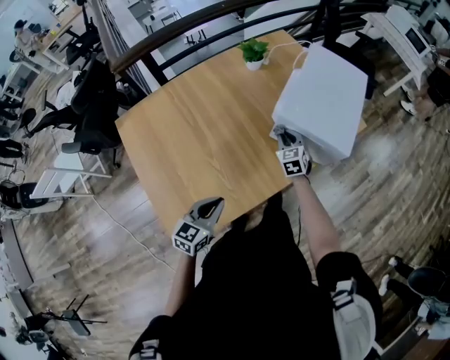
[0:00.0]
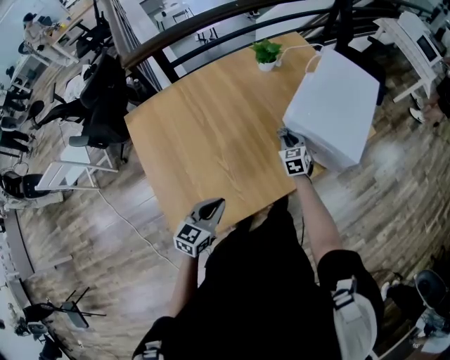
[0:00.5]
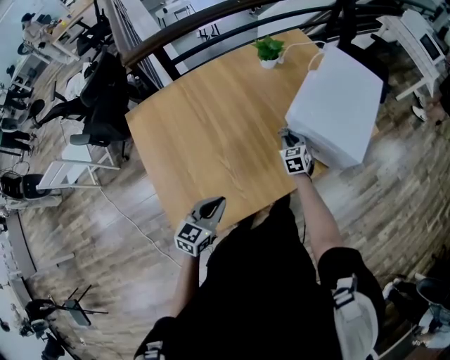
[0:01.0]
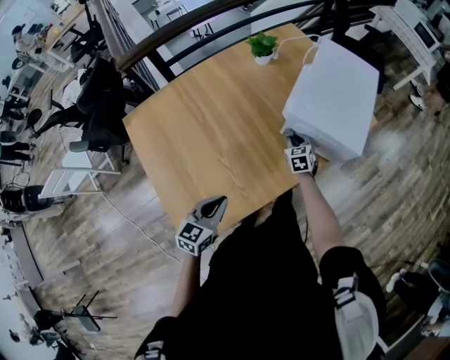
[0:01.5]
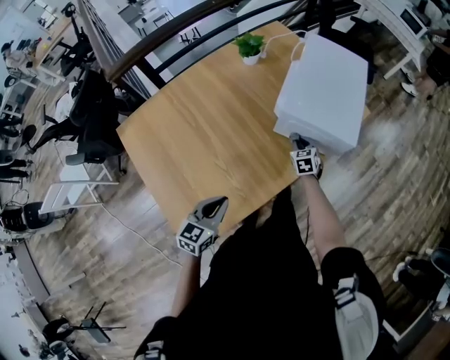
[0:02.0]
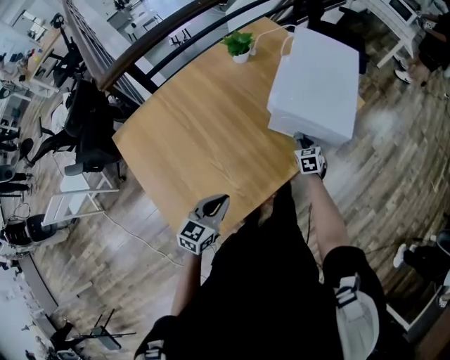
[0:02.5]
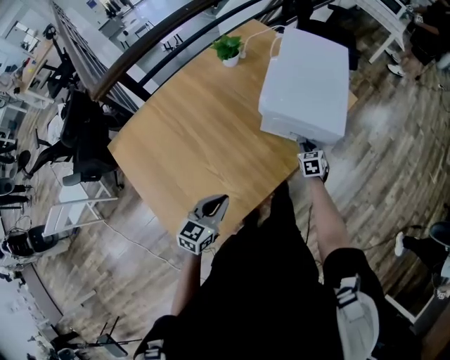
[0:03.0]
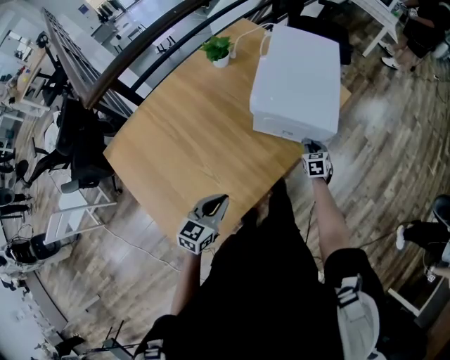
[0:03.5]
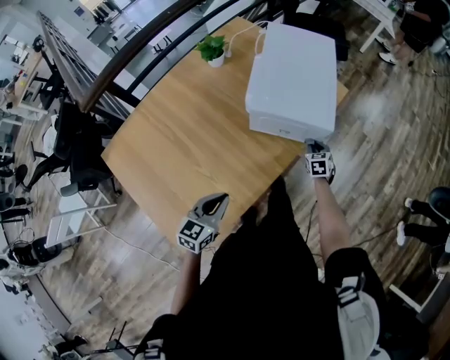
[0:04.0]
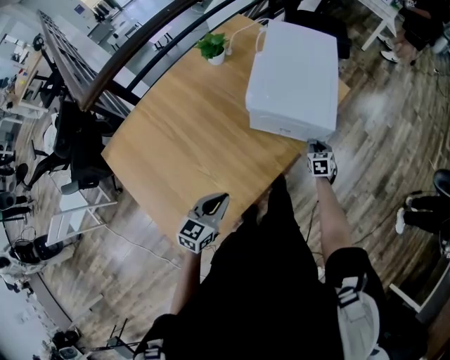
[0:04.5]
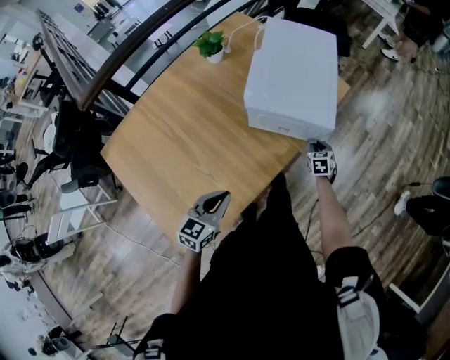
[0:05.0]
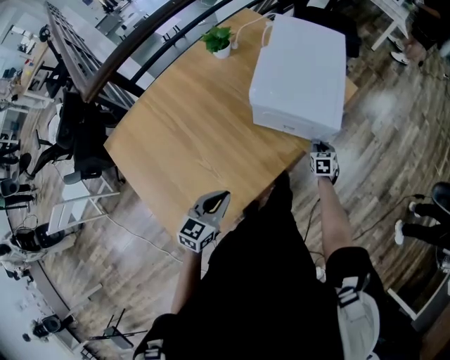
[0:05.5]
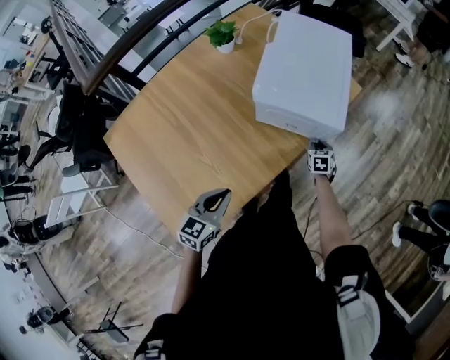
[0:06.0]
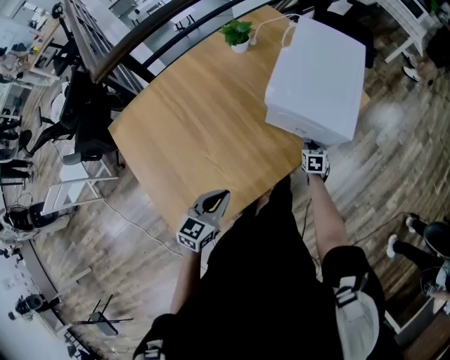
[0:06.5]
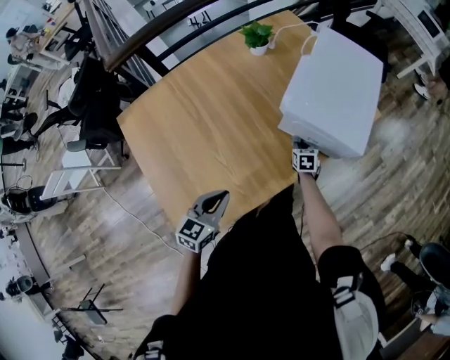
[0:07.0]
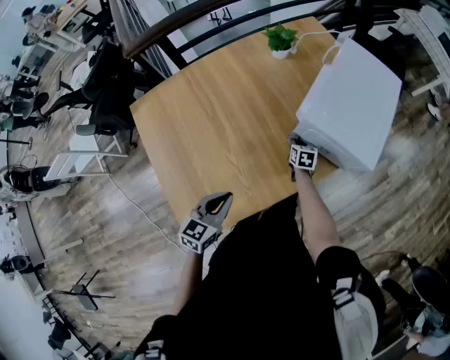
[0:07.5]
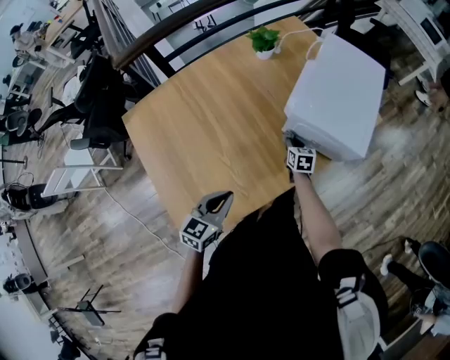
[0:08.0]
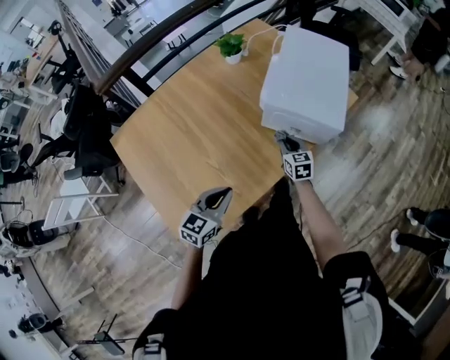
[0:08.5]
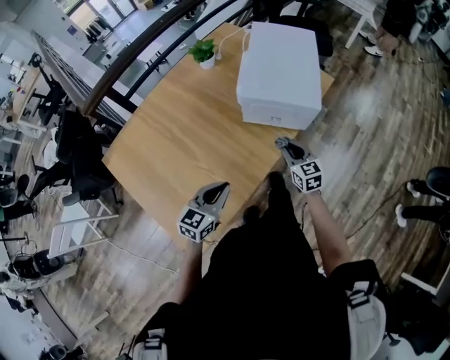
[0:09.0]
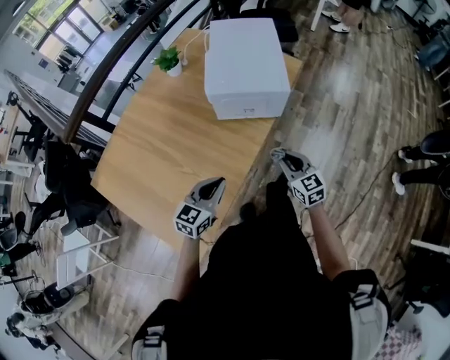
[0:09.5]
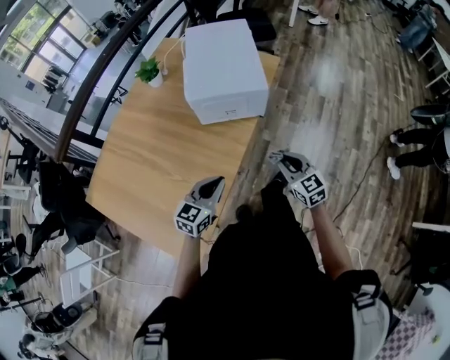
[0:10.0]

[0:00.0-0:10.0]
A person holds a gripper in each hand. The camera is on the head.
0:00.0 to 0:02.0: The right gripper is displaced downward and to the right by about 10 cm.
0:02.0 to 0:04.0: The left gripper travels forward and to the right by roughly 10 cm, while the right gripper travels to the right by some 15 cm.
0:04.0 to 0:06.0: The right gripper travels downward by some 5 cm.
0:06.0 to 0:08.0: The left gripper shifts about 5 cm to the left; the right gripper goes about 25 cm to the left, and changes its angle by about 20 degrees.
0:08.0 to 0:10.0: The left gripper travels to the right by about 15 cm, and turns by some 30 degrees. The right gripper shifts roughly 40 cm backward, to the right and upward, and swivels some 20 degrees.

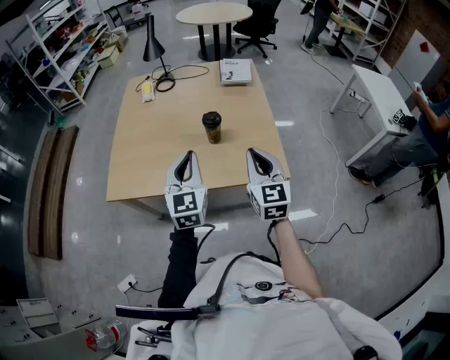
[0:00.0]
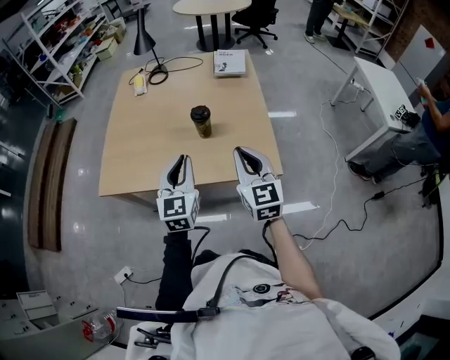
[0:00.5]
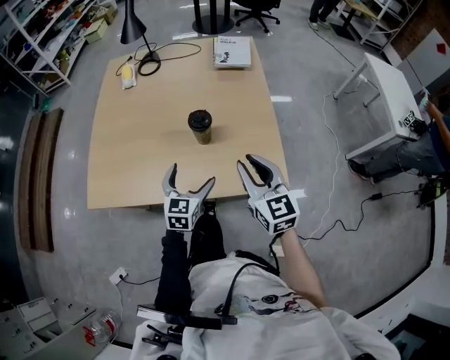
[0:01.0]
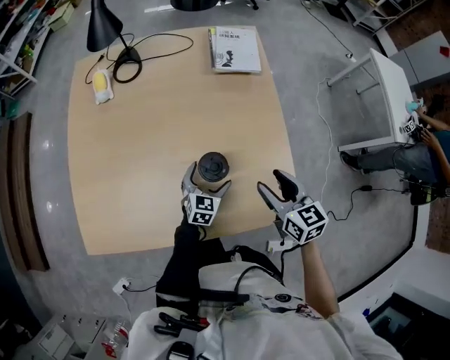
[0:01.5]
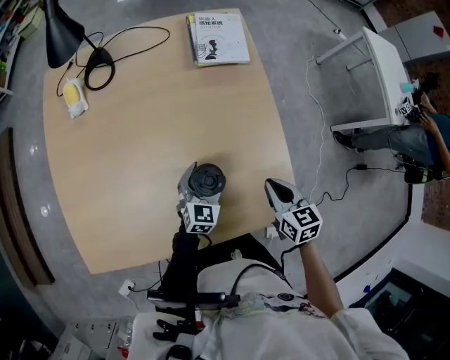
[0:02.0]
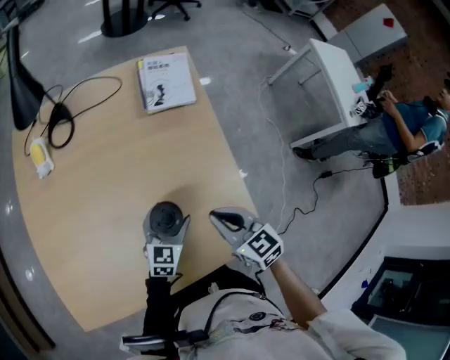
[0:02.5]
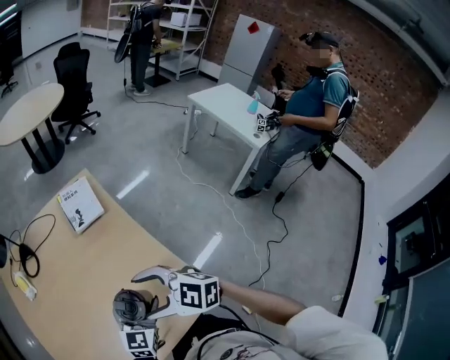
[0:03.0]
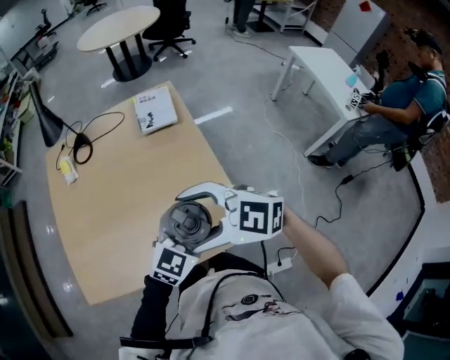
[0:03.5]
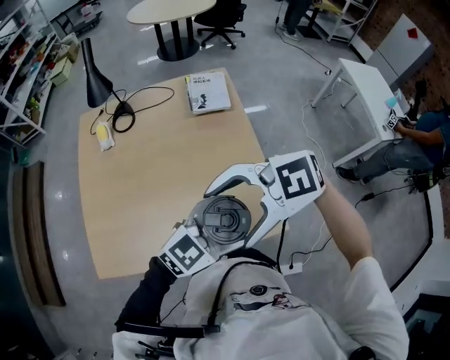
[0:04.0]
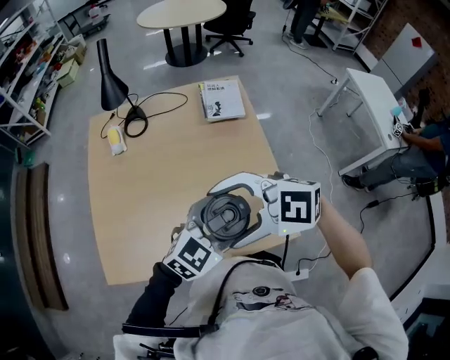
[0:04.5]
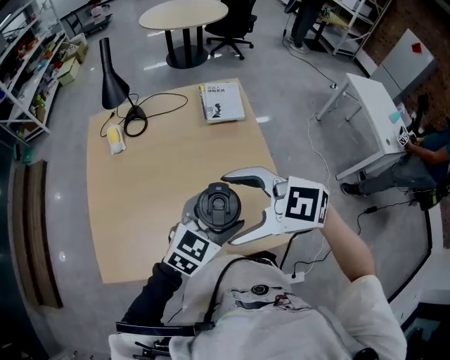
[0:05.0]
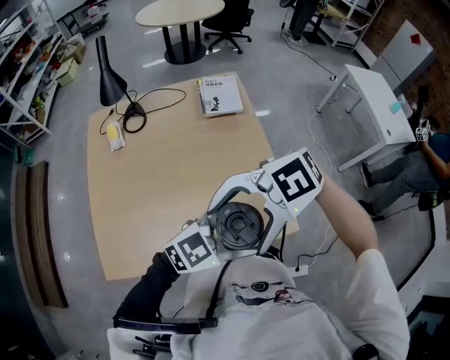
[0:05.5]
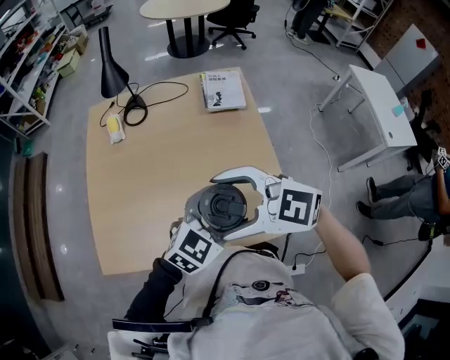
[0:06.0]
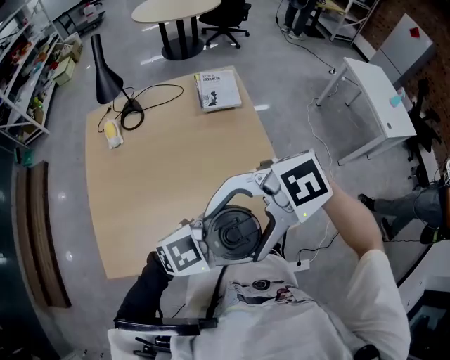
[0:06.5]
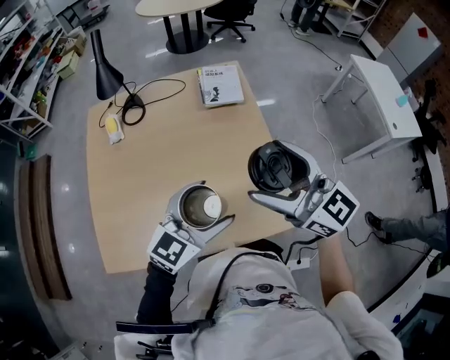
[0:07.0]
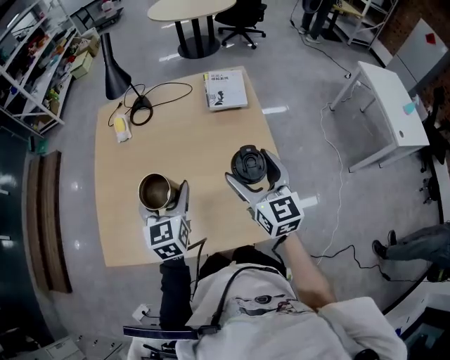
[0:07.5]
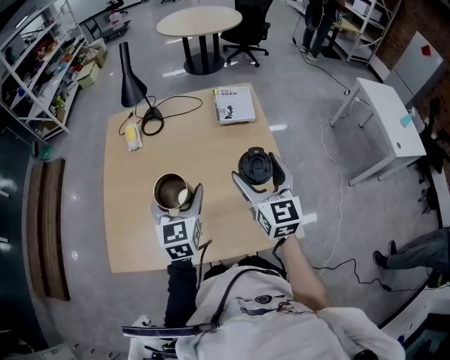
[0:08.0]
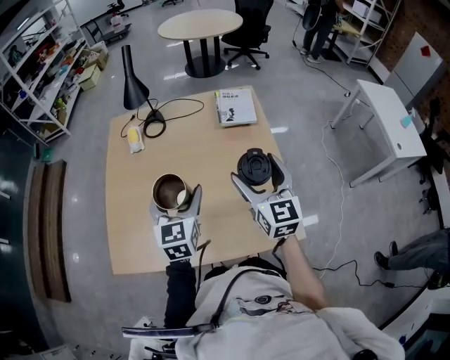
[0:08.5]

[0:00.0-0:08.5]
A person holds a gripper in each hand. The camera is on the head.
0:00.0 to 0:02.0: The left gripper heads downward and forward, covering some 40 cm, swivels about 40 degrees, and opens its fingers; the right gripper goes approximately 30 cm forward and downward, tips its fingers downward by approximately 30 degrees, and opens and closes again.
0:02.0 to 0:04.0: The grippers both shift upward by some 30 cm. The right gripper turns by about 100 degrees, and opens up. The left gripper turns by some 40 degrees.
0:04.0 to 0:06.5: The right gripper ends up some 5 cm from where it was.
0:06.5 to 0:08.5: The left gripper ends up some 25 cm from where it was, and swivels about 90 degrees. Meanwhile the right gripper changes place by approximately 20 cm, and rotates roughly 110 degrees.

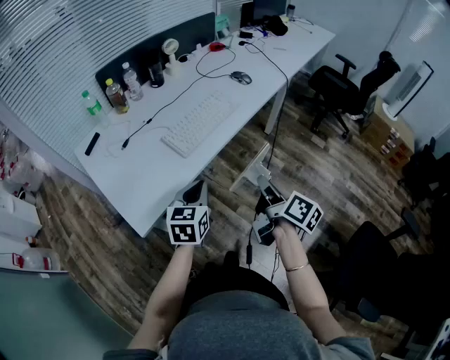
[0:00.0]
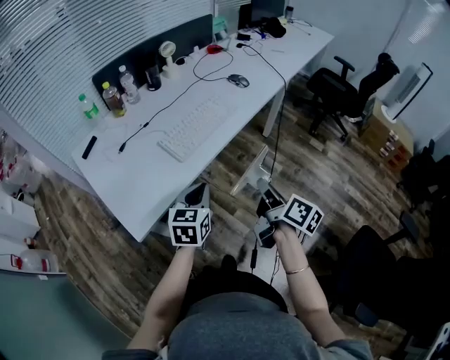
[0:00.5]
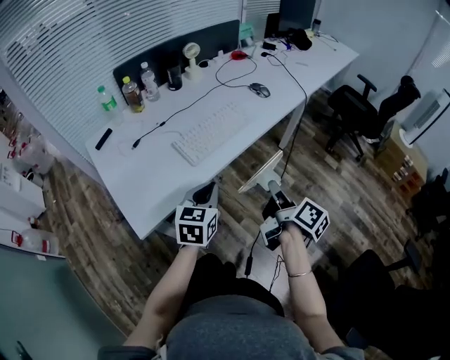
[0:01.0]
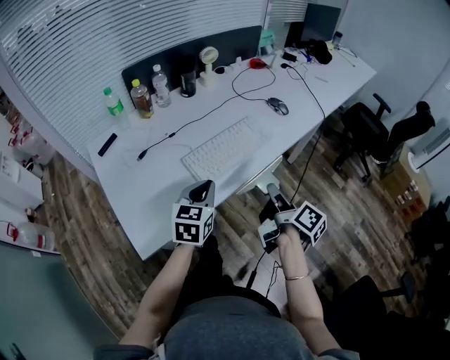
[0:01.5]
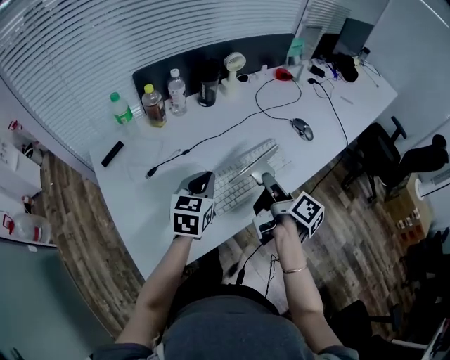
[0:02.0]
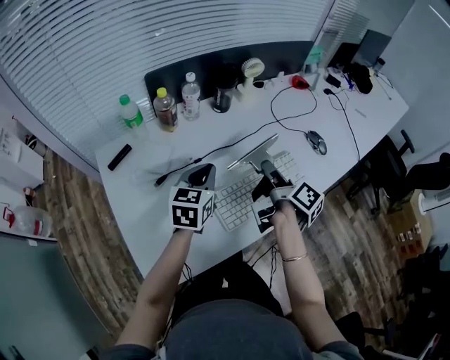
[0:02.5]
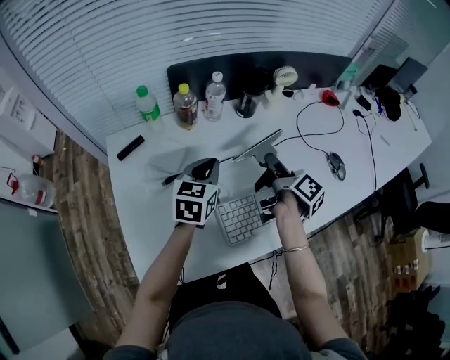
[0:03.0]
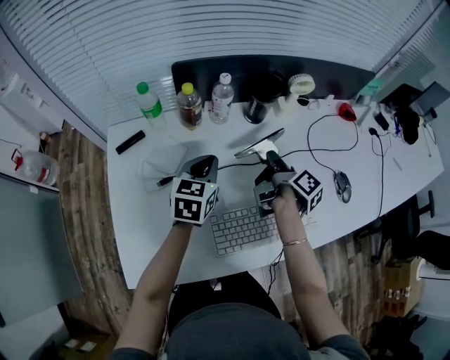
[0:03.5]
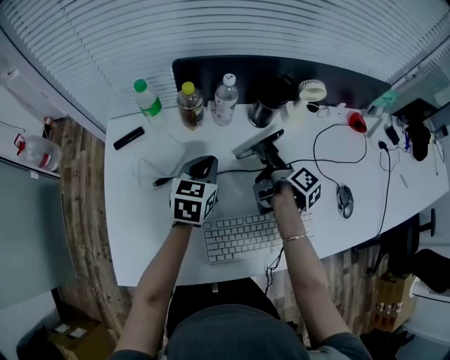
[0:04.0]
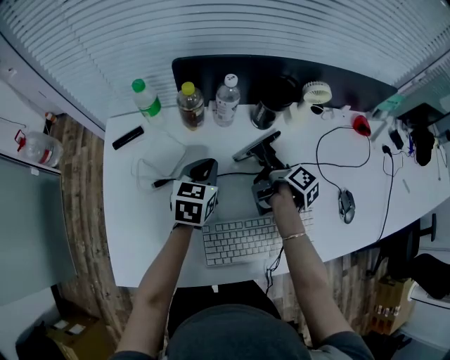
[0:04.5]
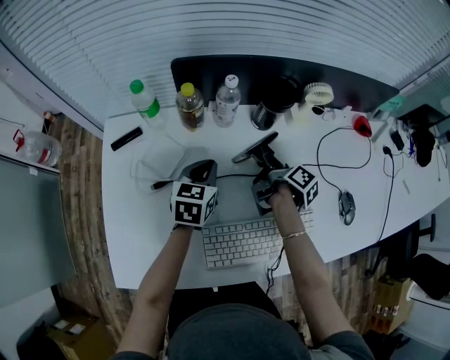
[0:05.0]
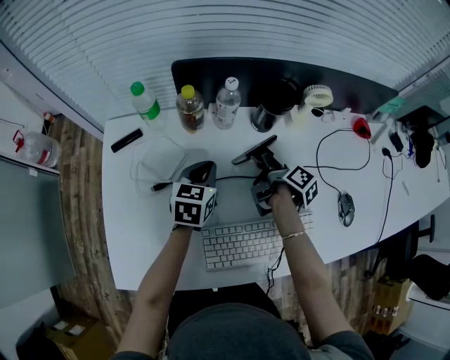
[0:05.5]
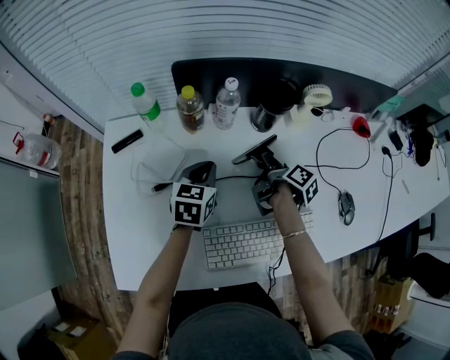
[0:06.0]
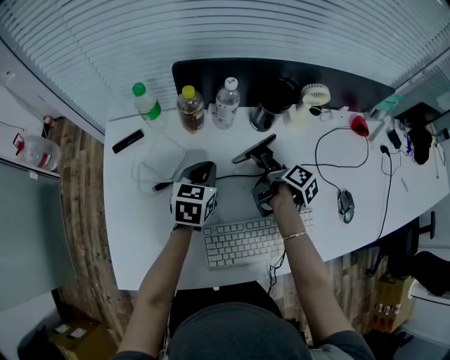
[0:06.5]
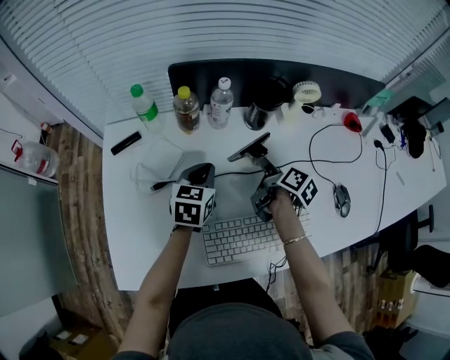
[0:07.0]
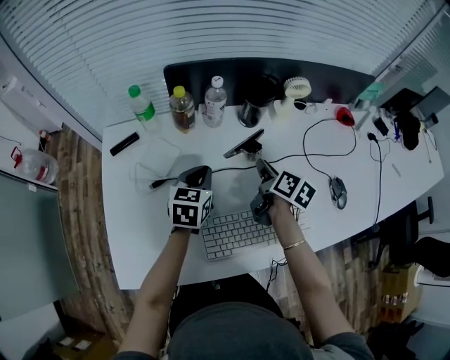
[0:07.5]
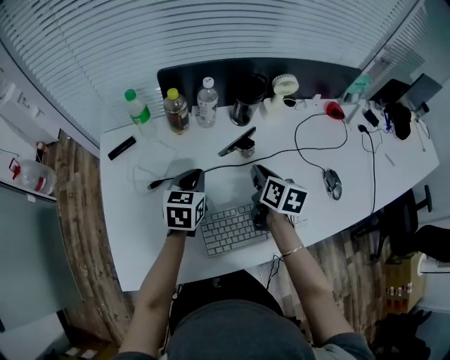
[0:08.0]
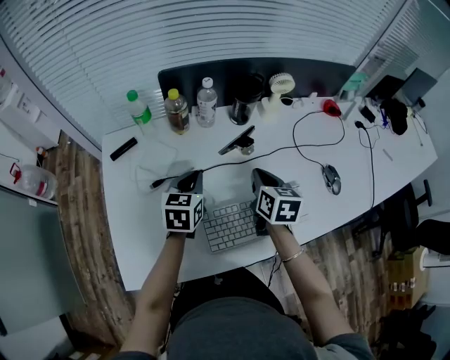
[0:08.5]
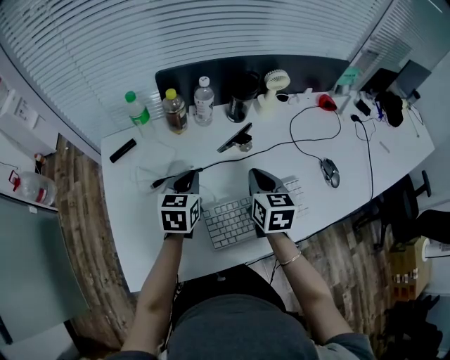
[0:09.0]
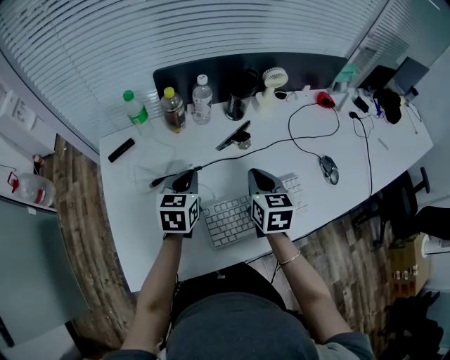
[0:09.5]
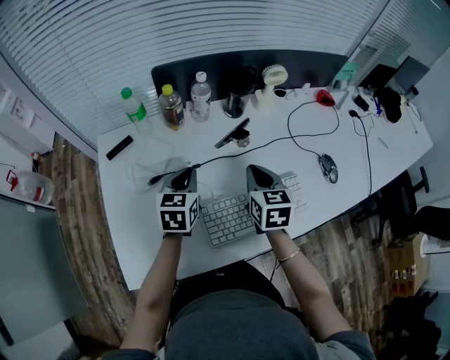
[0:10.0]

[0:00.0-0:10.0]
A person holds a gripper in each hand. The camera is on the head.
0:00.0 to 0:02.0: Both grippers move forward and to the left, about 30 cm.
0:02.0 to 0:04.0: The left gripper moves forward and to the left, roughly 20 cm, and turns by approximately 30 degrees. The right gripper heads forward, covering some 30 cm, and turns by approximately 20 degrees.
0:04.0 to 0:06.0: The grippers stay close to where they were, moving slightly.
0:06.0 to 0:08.0: The right gripper goes approximately 10 cm backward and upward, and rotates around the line of its fingers by roughly 40 degrees, counterclockwise from behind. The left gripper moves backward, approximately 5 cm.
0:08.0 to 0:10.0: The right gripper is displaced backward by roughly 5 cm, and turns by some 30 degrees.
